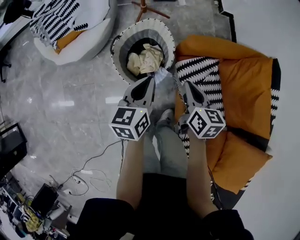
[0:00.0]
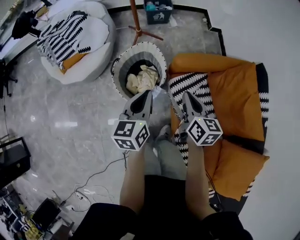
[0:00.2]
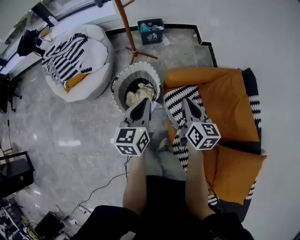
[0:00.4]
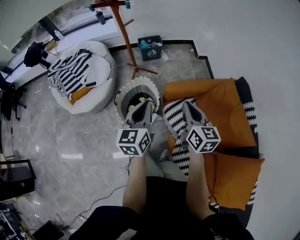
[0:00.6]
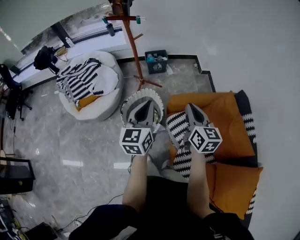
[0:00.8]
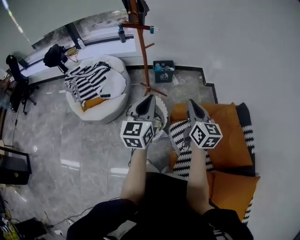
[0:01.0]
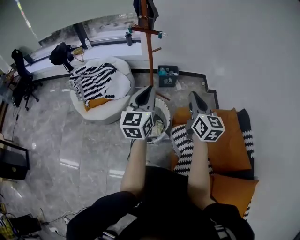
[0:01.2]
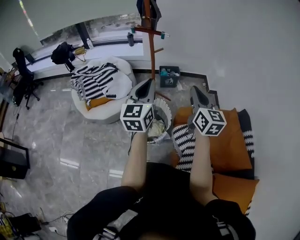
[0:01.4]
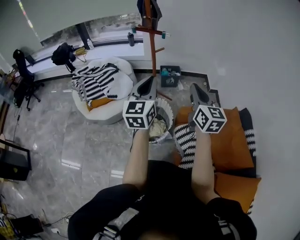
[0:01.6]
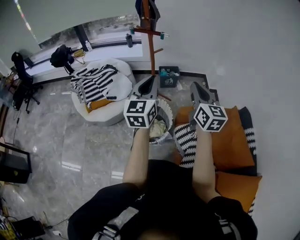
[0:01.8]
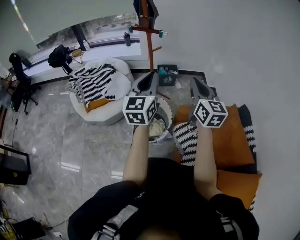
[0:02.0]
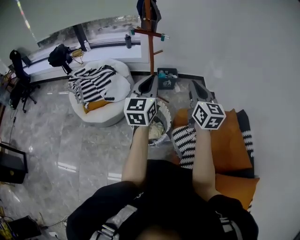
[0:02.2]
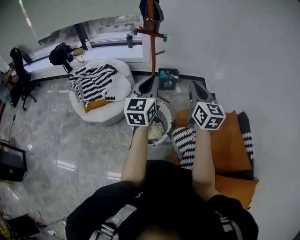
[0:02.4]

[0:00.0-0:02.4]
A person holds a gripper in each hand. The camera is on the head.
0:00.0 to 0:01.2: Both grippers move upward, approximately 40 cm. The right gripper angles its fingers upward, by approximately 30 degrees. The left gripper rotates approximately 40 degrees.
0:01.2 to 0:02.4: The right gripper moves approximately 5 cm; the left gripper shifts by approximately 5 cm.

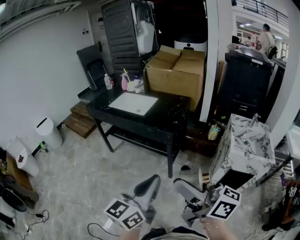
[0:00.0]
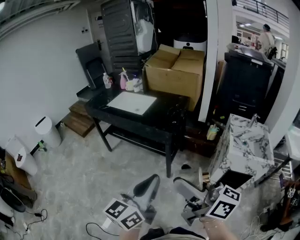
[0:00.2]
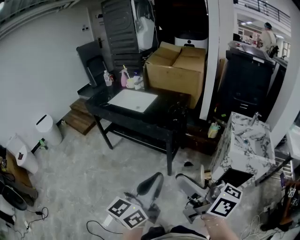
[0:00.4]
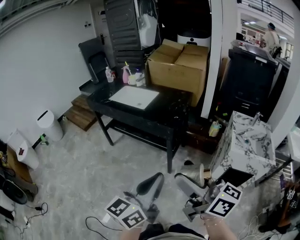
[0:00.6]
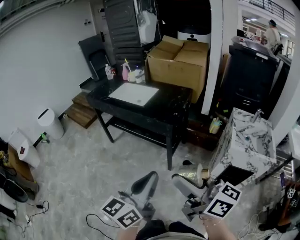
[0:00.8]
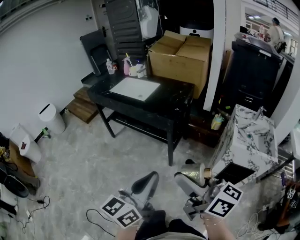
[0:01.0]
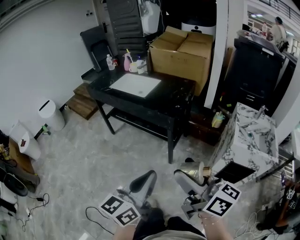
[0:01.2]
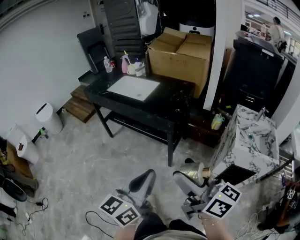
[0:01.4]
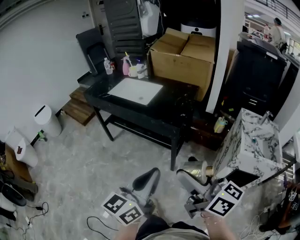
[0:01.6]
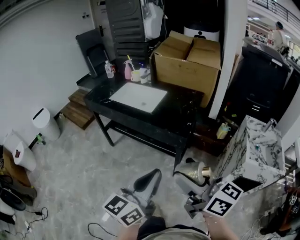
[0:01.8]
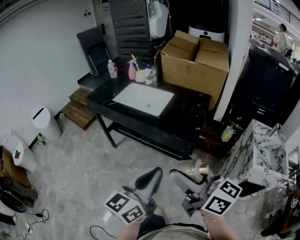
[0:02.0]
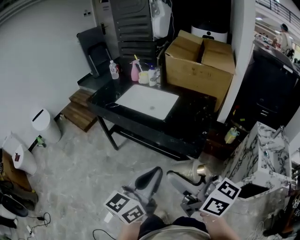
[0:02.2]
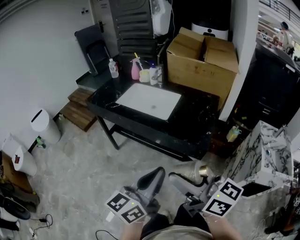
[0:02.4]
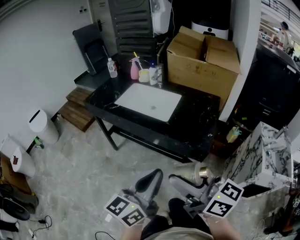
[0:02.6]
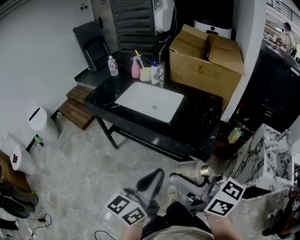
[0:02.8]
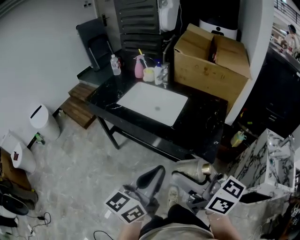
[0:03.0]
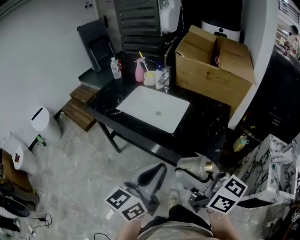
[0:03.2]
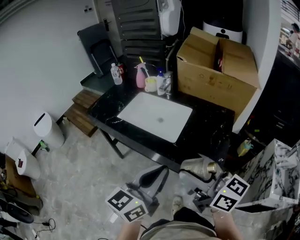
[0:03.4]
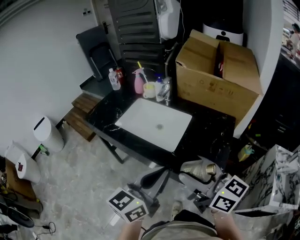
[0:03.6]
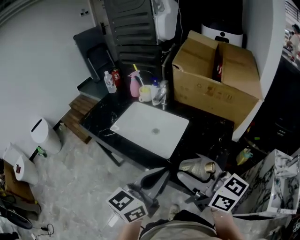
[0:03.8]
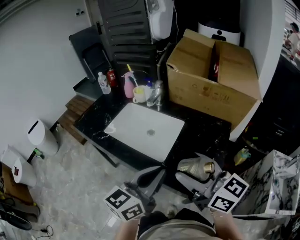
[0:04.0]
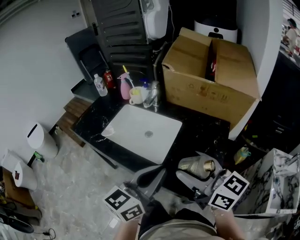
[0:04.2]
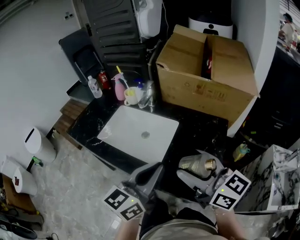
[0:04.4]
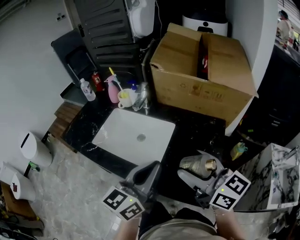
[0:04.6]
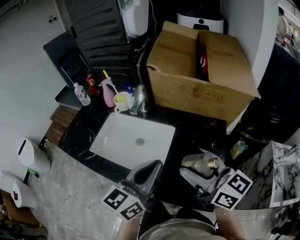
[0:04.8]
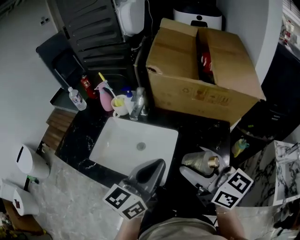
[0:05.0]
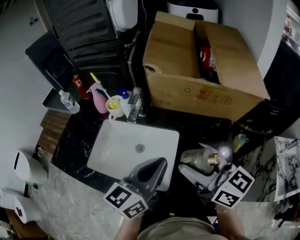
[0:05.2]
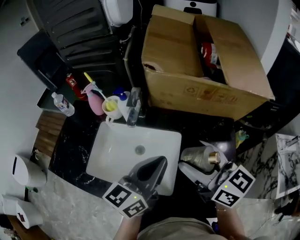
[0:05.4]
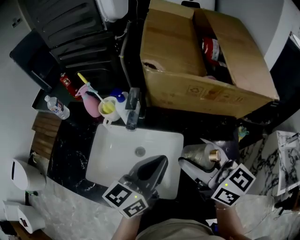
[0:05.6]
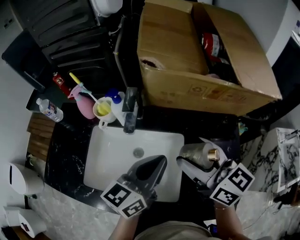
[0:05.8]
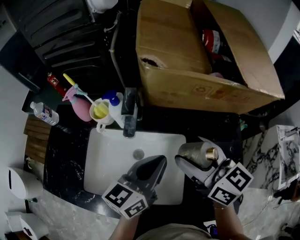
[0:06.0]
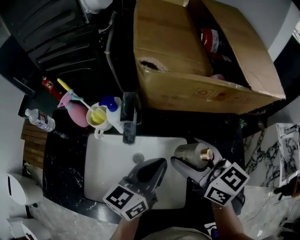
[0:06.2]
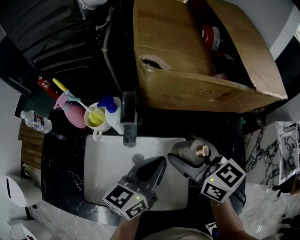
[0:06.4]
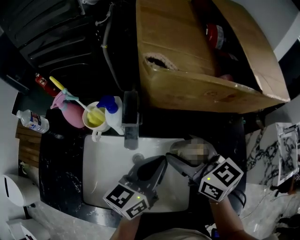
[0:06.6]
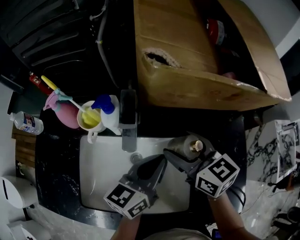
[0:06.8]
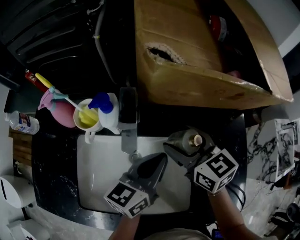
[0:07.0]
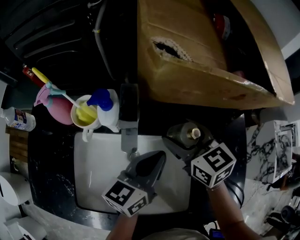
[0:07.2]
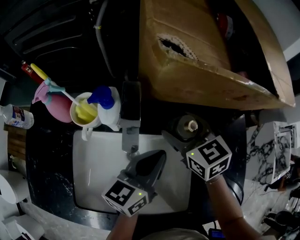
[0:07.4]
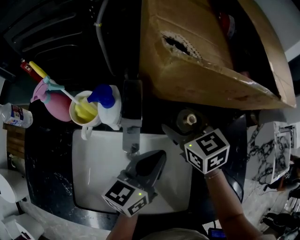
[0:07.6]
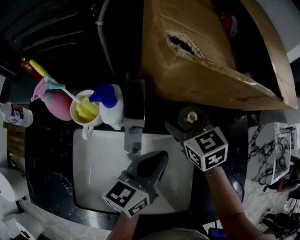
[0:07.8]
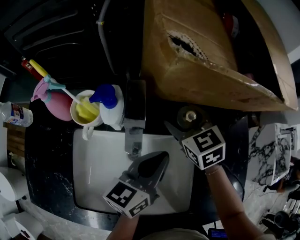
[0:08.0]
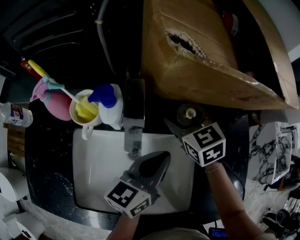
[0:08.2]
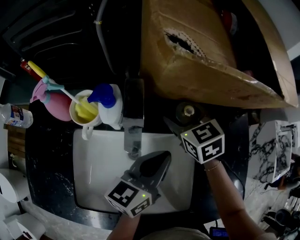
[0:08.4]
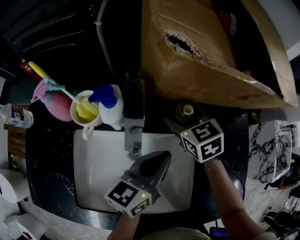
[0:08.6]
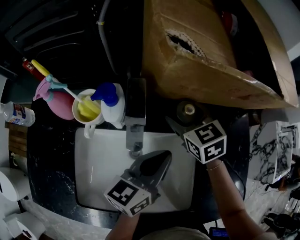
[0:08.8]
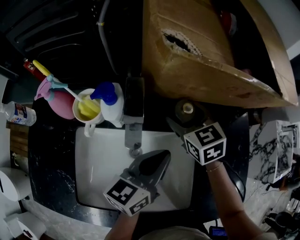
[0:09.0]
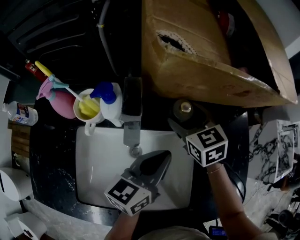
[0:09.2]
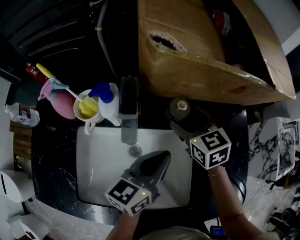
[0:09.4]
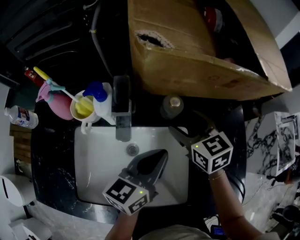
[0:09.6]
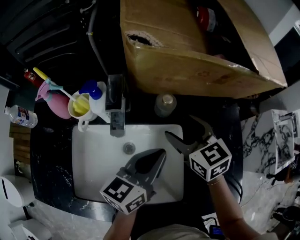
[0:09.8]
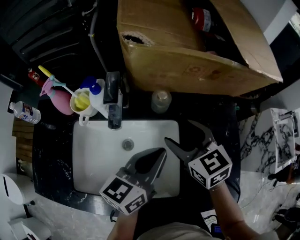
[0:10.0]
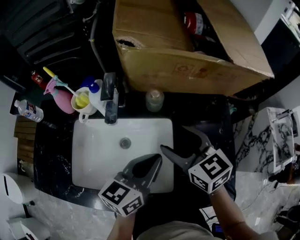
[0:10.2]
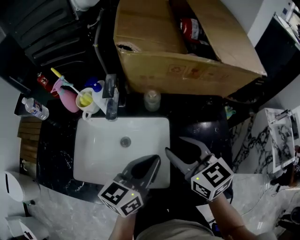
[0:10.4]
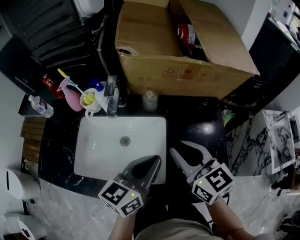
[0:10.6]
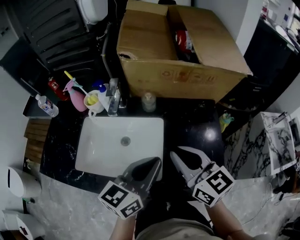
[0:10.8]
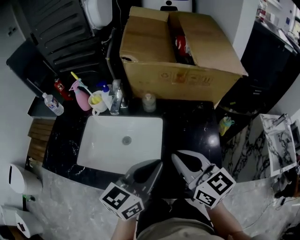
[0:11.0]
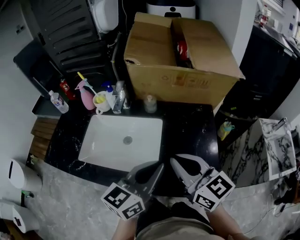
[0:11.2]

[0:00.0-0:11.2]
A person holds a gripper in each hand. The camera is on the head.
0:00.0 to 0:01.6: The left gripper heads forward, covering some 10 cm. The right gripper moves forward and downward, roughly 15 cm.
0:01.6 to 0:03.2: The left gripper moves forward, about 30 cm; the right gripper is displaced forward and to the left by some 35 cm.
0:03.2 to 0:04.8: Both grippers travel together forward, some 25 cm.
0:04.8 to 0:06.4: The right gripper heads forward, to the left and downward, covering roughly 30 cm, and changes its angle by about 20 degrees, while the left gripper travels forward and downward by approximately 25 cm, and changes its angle by roughly 30 degrees.
0:06.4 to 0:08.0: The right gripper travels forward and downward by some 15 cm, and turns by approximately 30 degrees; the left gripper travels downward by about 5 cm.
0:08.0 to 0:09.6: The right gripper shifts some 5 cm to the right.
0:09.6 to 0:11.2: The left gripper heads backward, upward and to the right, covering some 30 cm. Meanwhile the right gripper shifts about 35 cm backward and upward, changes its angle by some 30 degrees, and closes up.

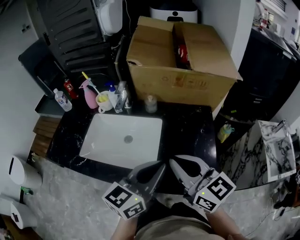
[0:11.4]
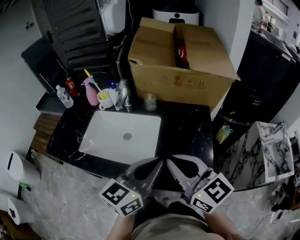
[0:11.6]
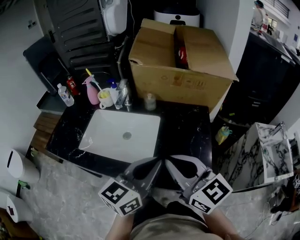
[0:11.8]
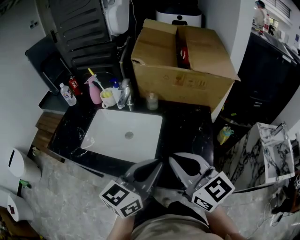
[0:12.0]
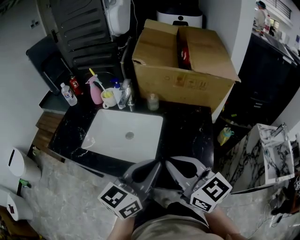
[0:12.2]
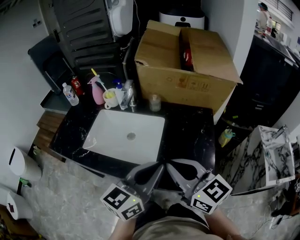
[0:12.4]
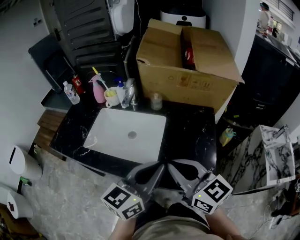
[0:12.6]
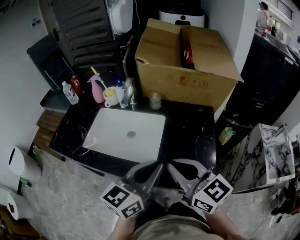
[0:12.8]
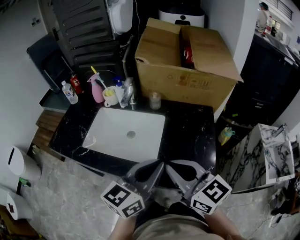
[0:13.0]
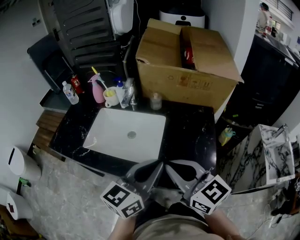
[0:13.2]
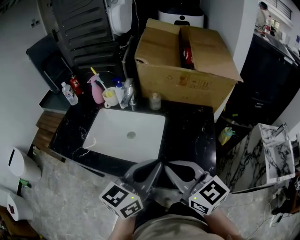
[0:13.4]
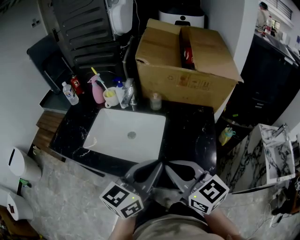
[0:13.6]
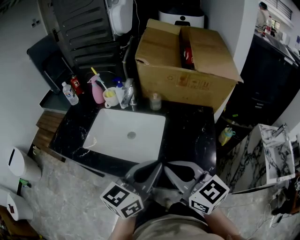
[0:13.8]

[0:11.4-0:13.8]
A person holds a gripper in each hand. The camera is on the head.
0:11.4 to 0:13.8: The grippers make only small movements.

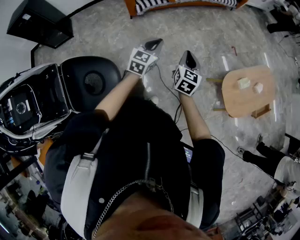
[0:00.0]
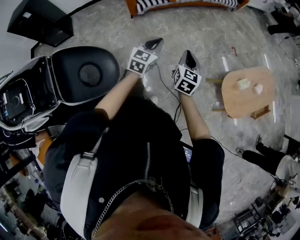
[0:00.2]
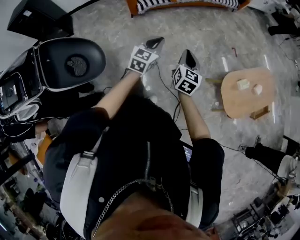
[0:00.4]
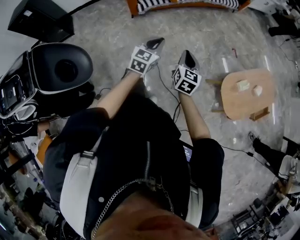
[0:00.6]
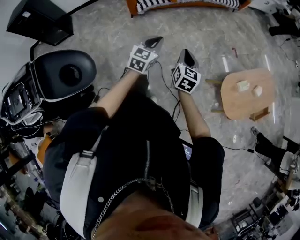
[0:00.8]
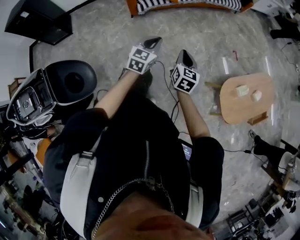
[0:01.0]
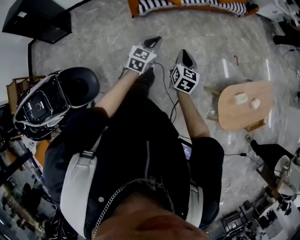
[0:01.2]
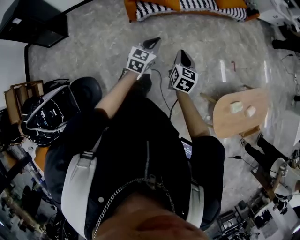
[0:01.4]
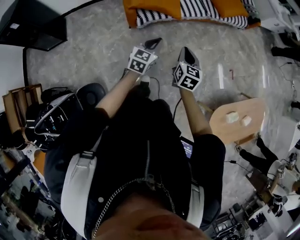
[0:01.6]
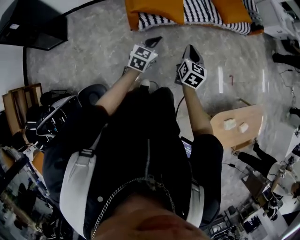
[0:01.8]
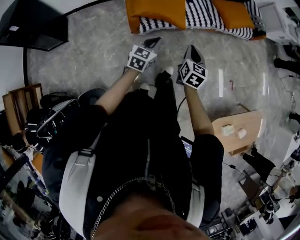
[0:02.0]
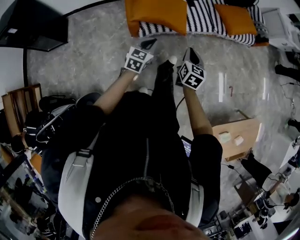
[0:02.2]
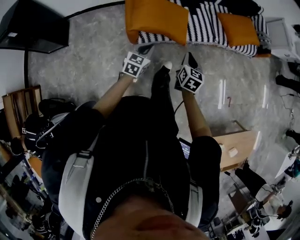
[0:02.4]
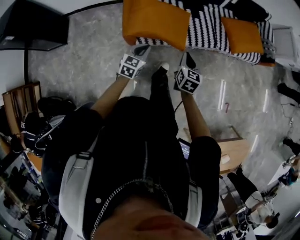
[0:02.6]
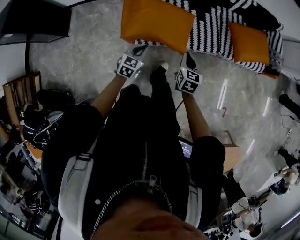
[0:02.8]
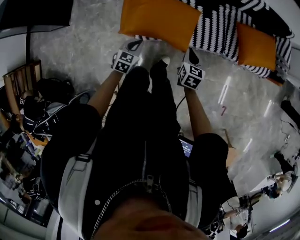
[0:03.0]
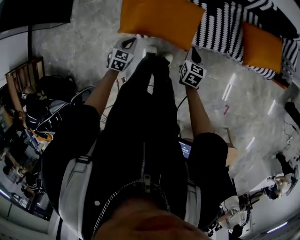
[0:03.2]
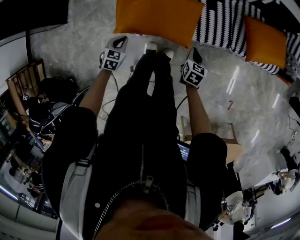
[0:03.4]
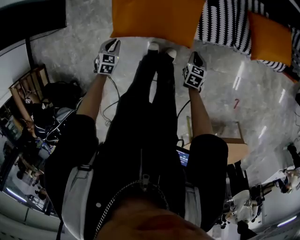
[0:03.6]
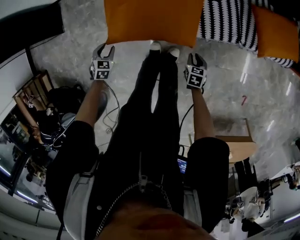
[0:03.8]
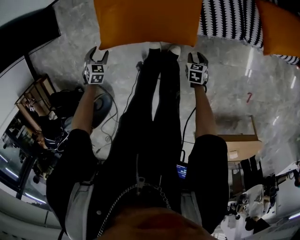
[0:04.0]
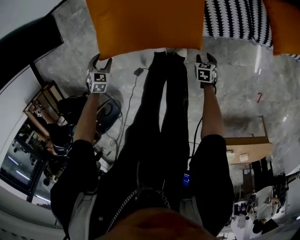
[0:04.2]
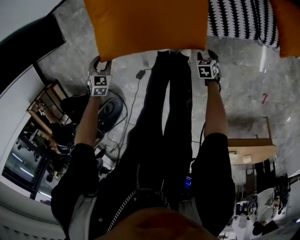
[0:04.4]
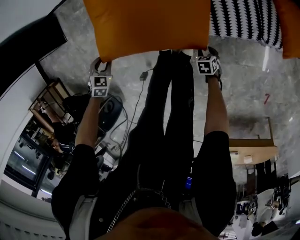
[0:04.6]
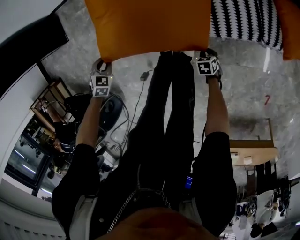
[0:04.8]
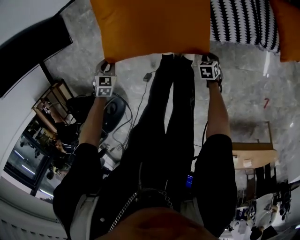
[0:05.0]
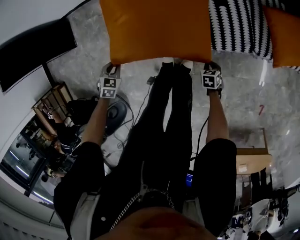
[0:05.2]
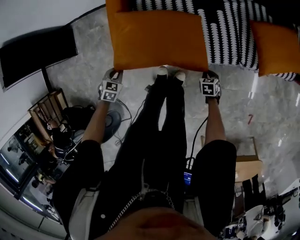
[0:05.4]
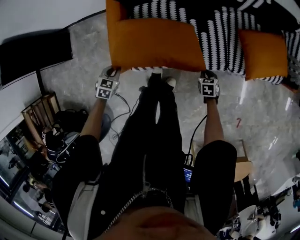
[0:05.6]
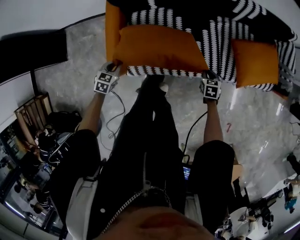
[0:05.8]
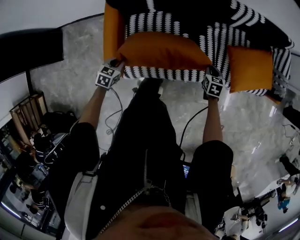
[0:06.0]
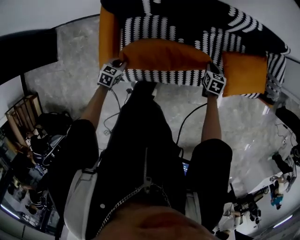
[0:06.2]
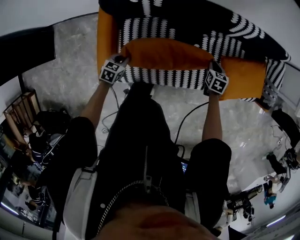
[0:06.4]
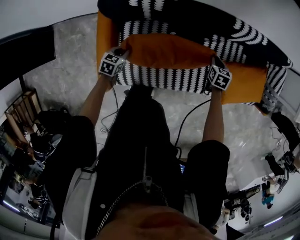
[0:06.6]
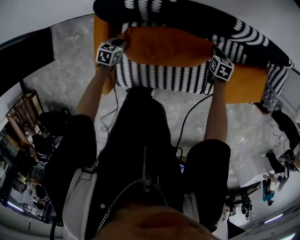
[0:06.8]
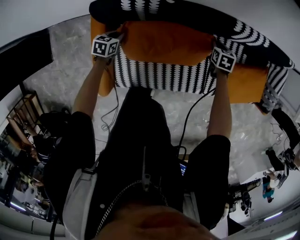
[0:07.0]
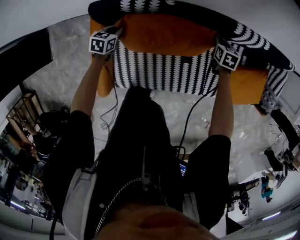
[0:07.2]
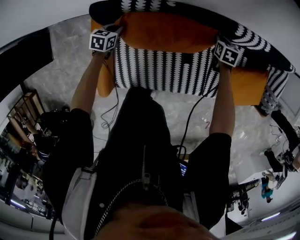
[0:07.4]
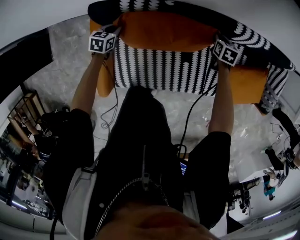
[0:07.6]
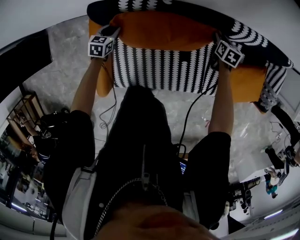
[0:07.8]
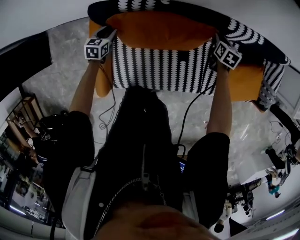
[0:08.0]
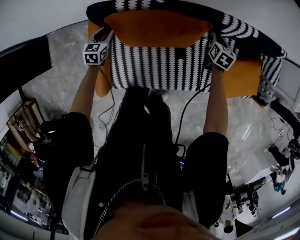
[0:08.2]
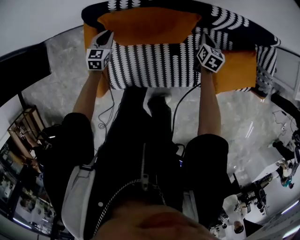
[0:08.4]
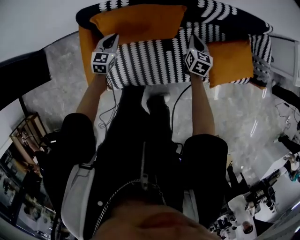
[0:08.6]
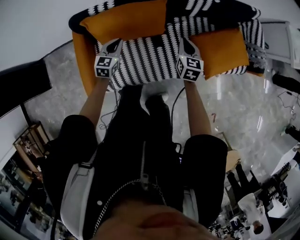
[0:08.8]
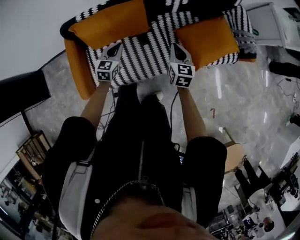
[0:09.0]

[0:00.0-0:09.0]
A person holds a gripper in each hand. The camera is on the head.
0:00.0 to 0:01.6: The grippers both shift forward and to the left by about 35 cm.
0:01.6 to 0:03.0: The pair of grippers is taken forward, approximately 50 cm. The left gripper changes its angle by about 30 degrees. The right gripper rotates approximately 20 degrees.
0:03.0 to 0:04.4: The left gripper travels downward by some 25 cm, rotates approximately 30 degrees, and opens. The right gripper goes some 40 cm downward, tilts its fingers approximately 30 degrees downward, and opens up.
0:04.4 to 0:06.0: The left gripper ends up approximately 30 cm from where it was, changes its angle by approximately 30 degrees, and closes up. Meanwhile the right gripper moves roughly 50 cm, rotates about 20 degrees, and closes its fingers.
0:06.0 to 0:07.6: The grippers both shift forward by approximately 35 cm.
0:07.6 to 0:09.0: The pair of grippers is taken backward and to the right, approximately 40 cm. The two grippers go some 20 cm upward. The left gripper swivels roughly 30 degrees, and opens, then closes once more. The right gripper tips its fingers upward by some 30 degrees, and opens, then closes once more.
